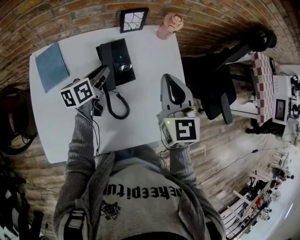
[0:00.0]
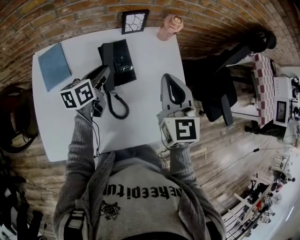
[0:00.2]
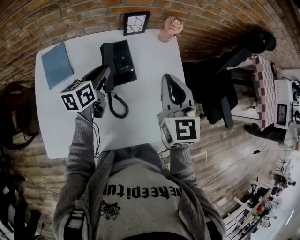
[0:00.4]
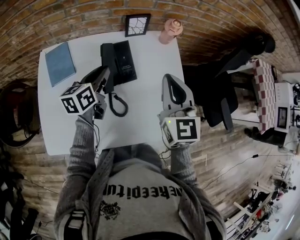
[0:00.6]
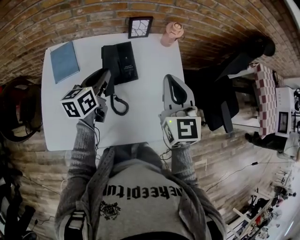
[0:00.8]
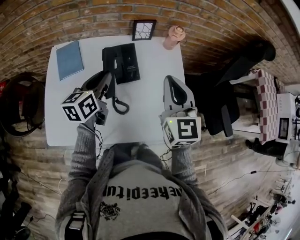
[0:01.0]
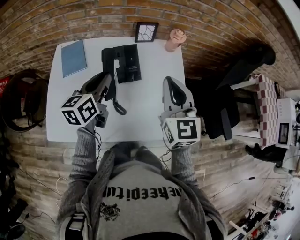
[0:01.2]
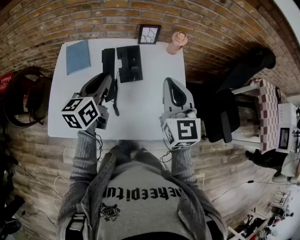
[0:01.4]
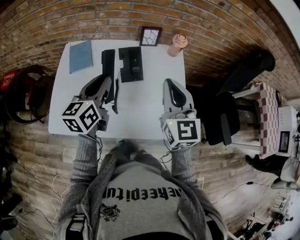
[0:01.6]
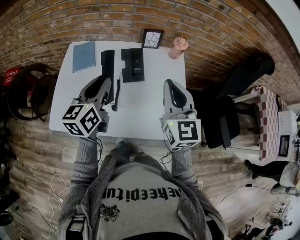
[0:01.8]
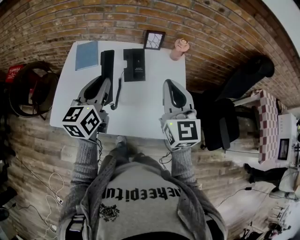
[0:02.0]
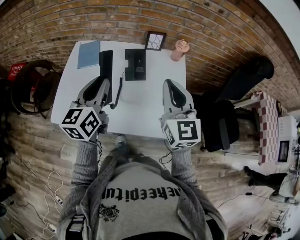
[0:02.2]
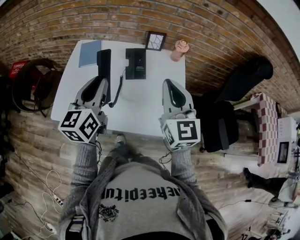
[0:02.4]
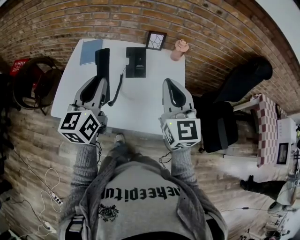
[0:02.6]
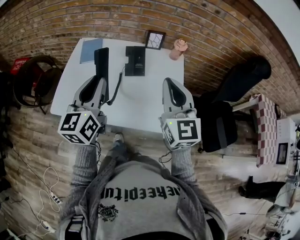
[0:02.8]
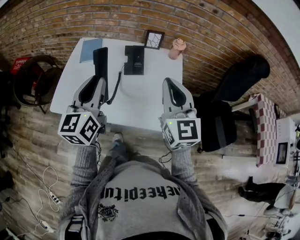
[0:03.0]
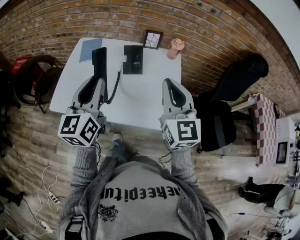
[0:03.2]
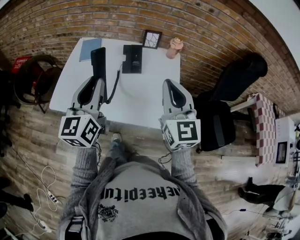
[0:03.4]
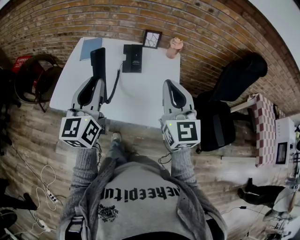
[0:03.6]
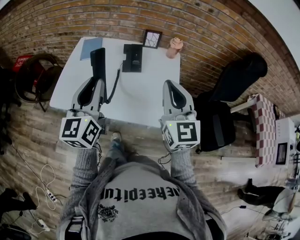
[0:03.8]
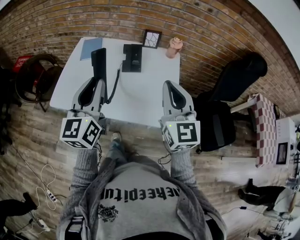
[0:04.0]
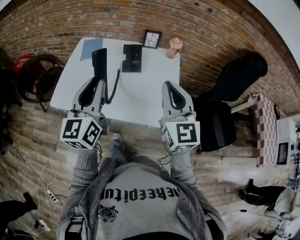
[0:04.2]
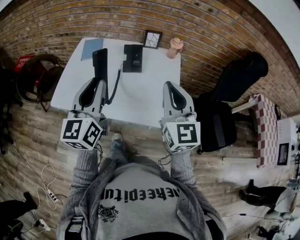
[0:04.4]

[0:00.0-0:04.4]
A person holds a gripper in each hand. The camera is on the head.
0:00.0 to 0:01.4: The right gripper moves backward and upward, roughly 10 cm, while the left gripper goes approximately 20 cm upward and backward, and changes its angle by about 30 degrees.
0:01.4 to 0:03.0: The right gripper moves backward and upward, some 15 cm; the left gripper heads backward and upward, covering approximately 20 cm, and swivels roughly 30 degrees.
0:03.0 to 0:04.4: The right gripper ends up about 5 cm from where it was. The left gripper heads backward, covering about 5 cm.

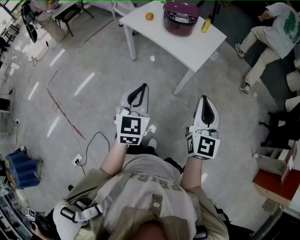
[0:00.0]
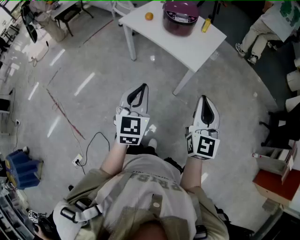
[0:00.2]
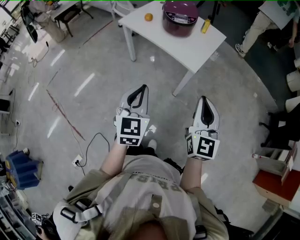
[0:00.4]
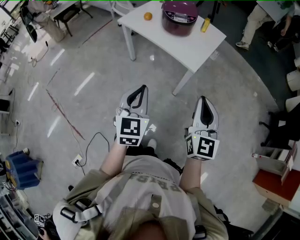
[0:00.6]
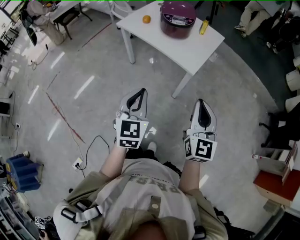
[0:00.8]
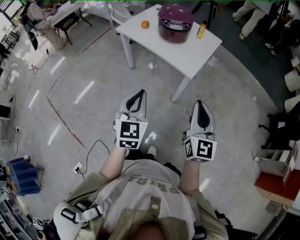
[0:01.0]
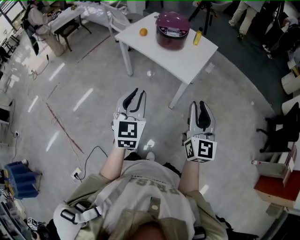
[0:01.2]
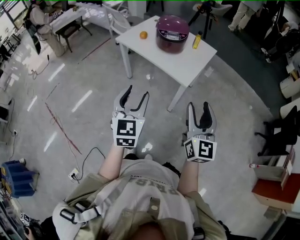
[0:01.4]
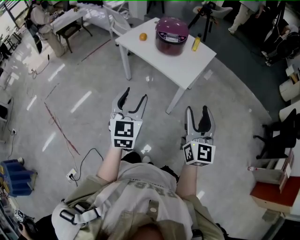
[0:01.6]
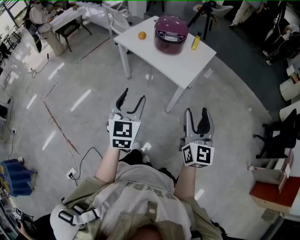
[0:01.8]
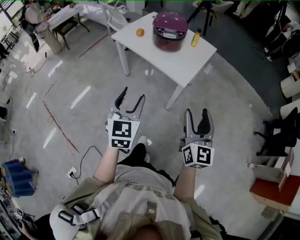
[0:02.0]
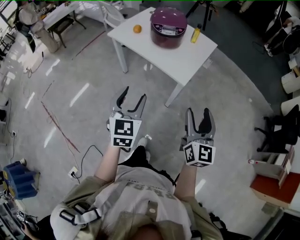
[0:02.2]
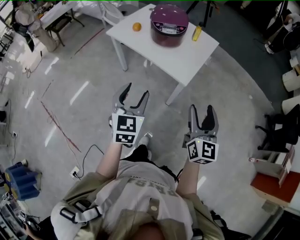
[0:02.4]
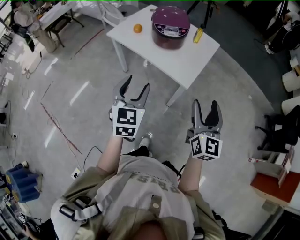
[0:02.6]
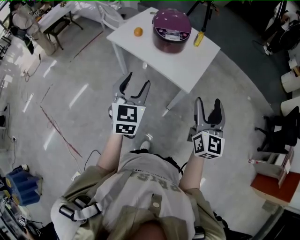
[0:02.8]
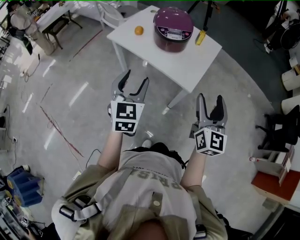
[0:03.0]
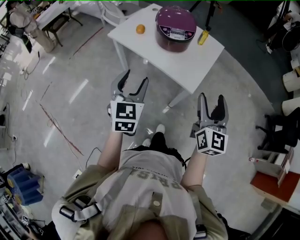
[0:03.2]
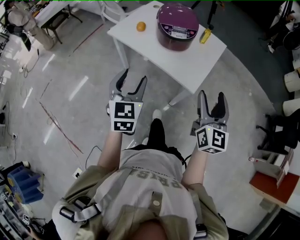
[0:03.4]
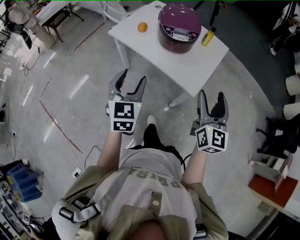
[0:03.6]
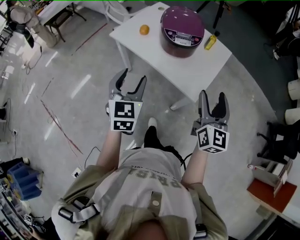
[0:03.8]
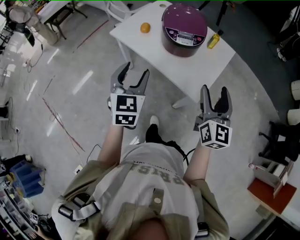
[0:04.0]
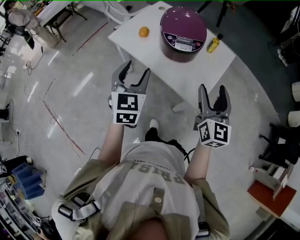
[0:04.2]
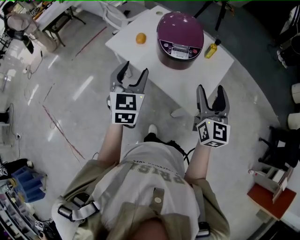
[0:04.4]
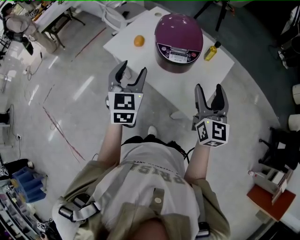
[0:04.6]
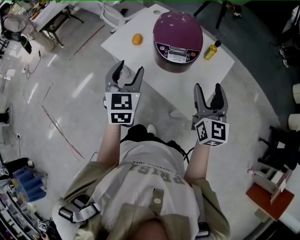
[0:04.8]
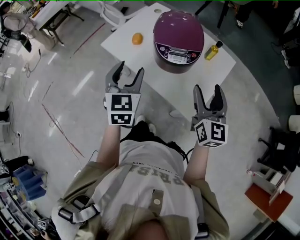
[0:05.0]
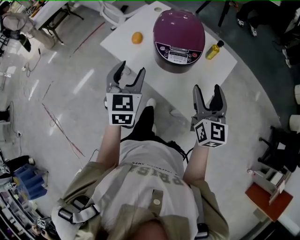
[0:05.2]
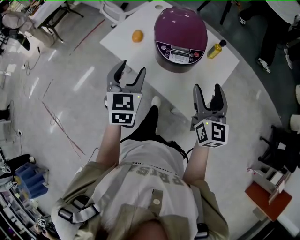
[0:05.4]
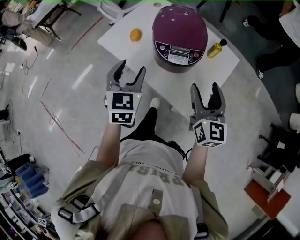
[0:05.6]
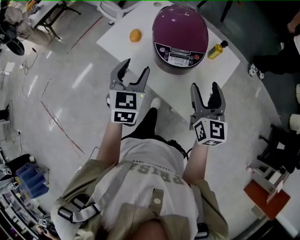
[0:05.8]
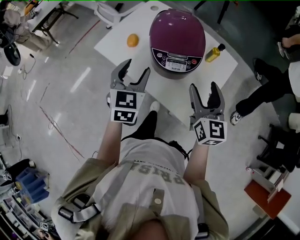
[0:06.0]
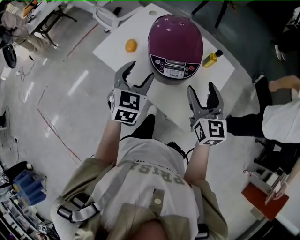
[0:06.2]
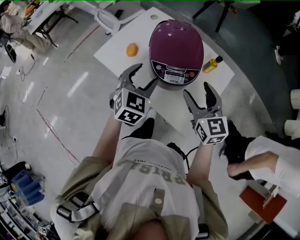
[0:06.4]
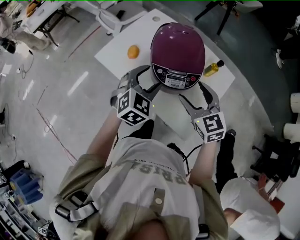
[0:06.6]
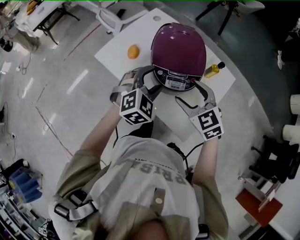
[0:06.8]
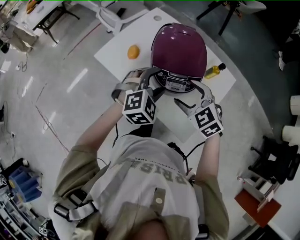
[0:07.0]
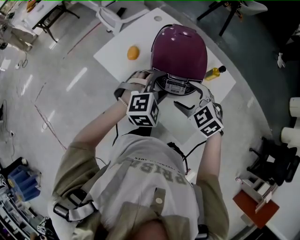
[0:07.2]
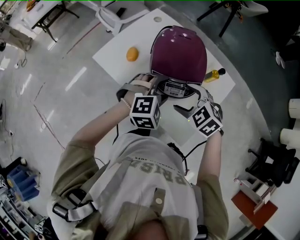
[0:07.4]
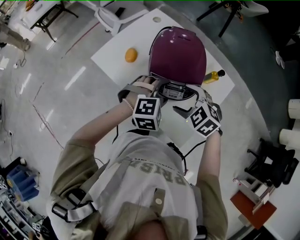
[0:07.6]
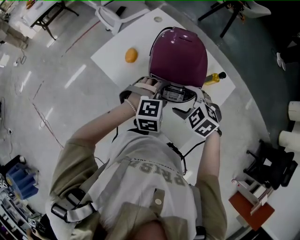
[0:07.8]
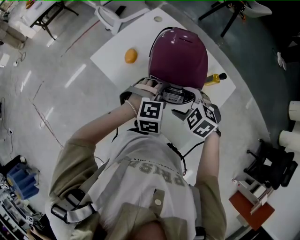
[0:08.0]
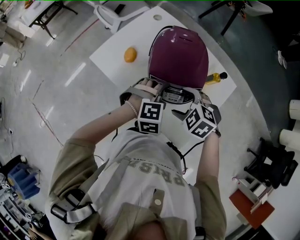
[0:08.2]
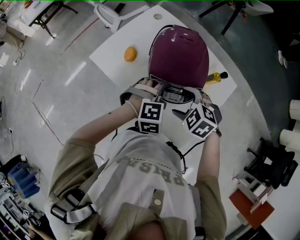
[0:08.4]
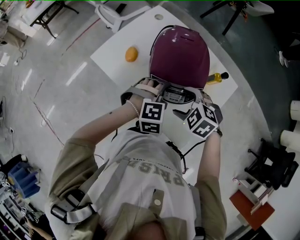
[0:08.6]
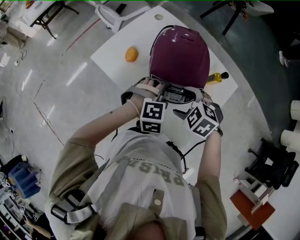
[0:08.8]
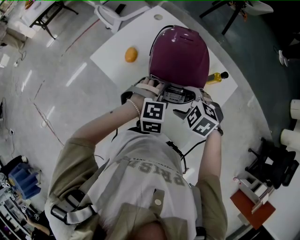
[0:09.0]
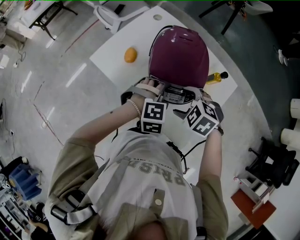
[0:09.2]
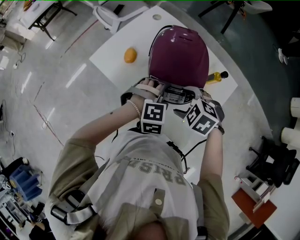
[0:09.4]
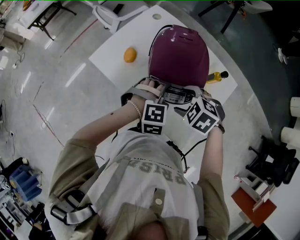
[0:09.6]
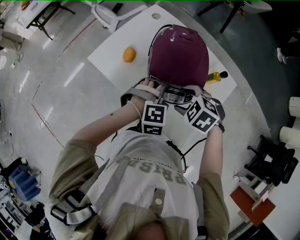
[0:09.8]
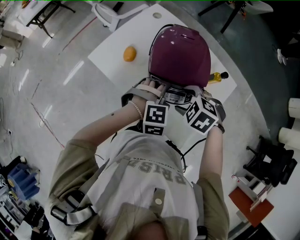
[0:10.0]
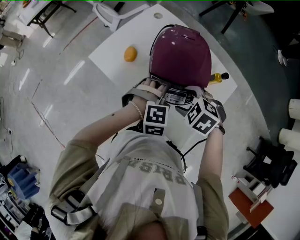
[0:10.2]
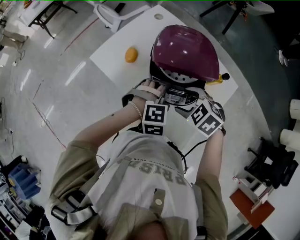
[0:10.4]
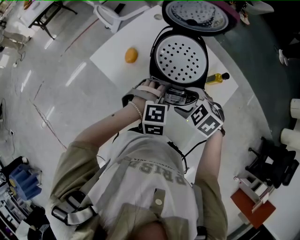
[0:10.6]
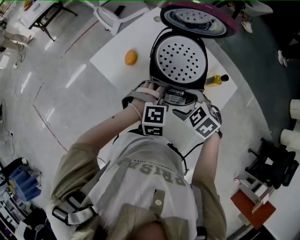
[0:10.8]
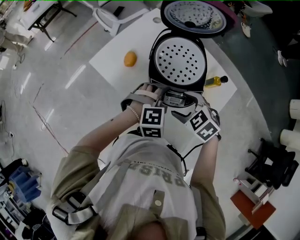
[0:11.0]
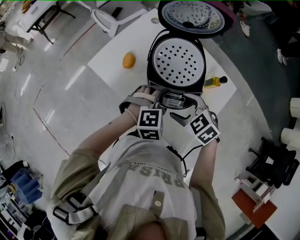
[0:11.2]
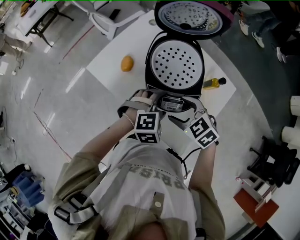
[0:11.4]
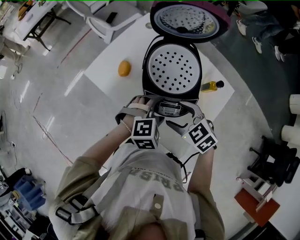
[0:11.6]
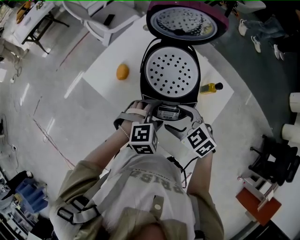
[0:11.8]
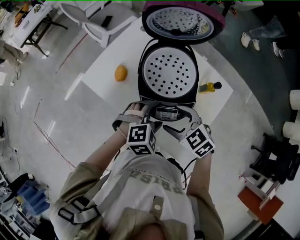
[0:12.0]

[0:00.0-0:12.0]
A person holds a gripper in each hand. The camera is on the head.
0:00.0 to 0:01.6: The left gripper opens its fingers; the right gripper opens its fingers.
0:01.6 to 0:03.0: Both grippers move forward, approximately 15 cm.
0:03.0 to 0:04.4: The grippers both shift forward by approximately 20 cm.
0:04.4 to 0:06.0: Both grippers move forward and downward, approximately 15 cm.
0:06.0 to 0:07.6: The right gripper is displaced downward, forward and to the left by roughly 15 cm, and points its fingers roughly 50 degrees further downward. The left gripper heads to the right and downward, covering roughly 15 cm, and rotates some 60 degrees.
0:07.6 to 0:10.4: The grippers move only a little.
0:10.4 to 0:12.0: The right gripper rotates some 20 degrees.

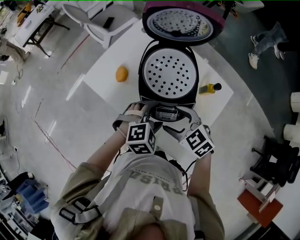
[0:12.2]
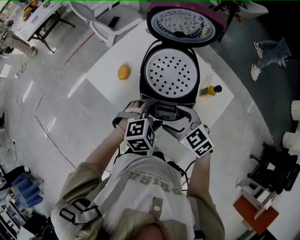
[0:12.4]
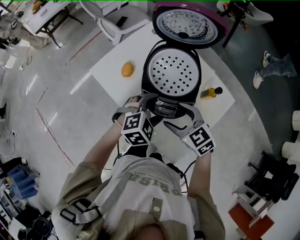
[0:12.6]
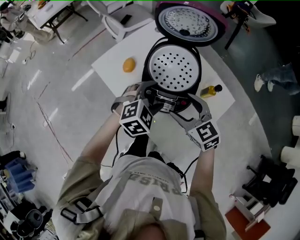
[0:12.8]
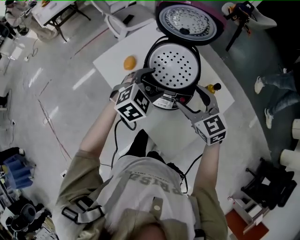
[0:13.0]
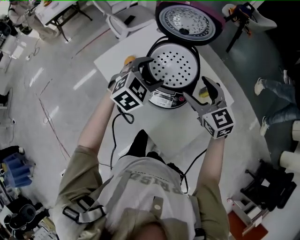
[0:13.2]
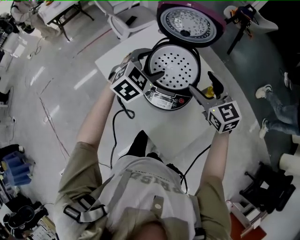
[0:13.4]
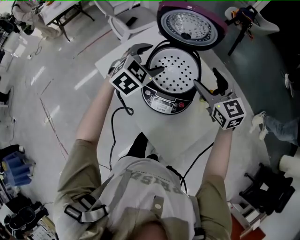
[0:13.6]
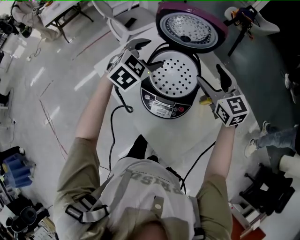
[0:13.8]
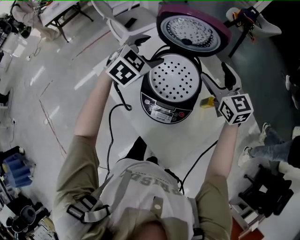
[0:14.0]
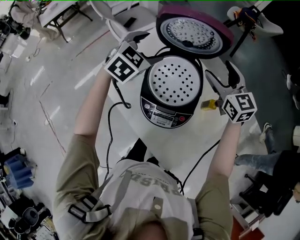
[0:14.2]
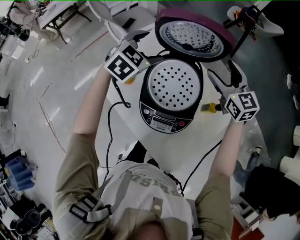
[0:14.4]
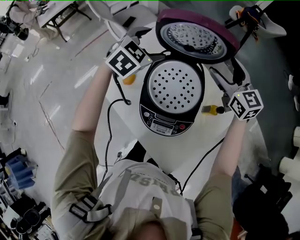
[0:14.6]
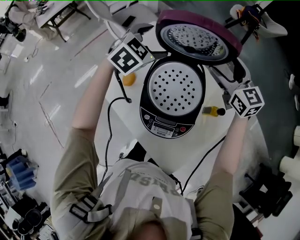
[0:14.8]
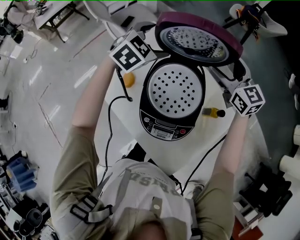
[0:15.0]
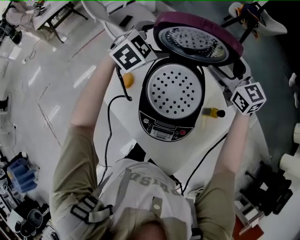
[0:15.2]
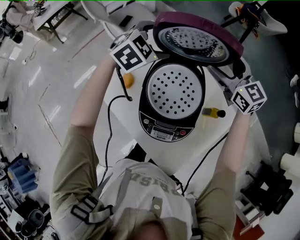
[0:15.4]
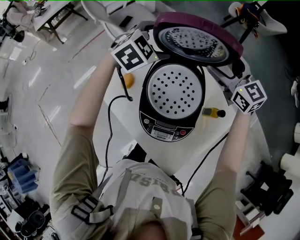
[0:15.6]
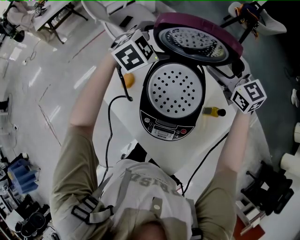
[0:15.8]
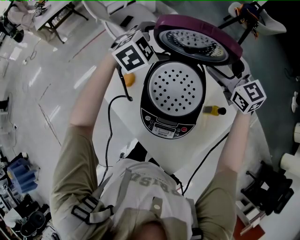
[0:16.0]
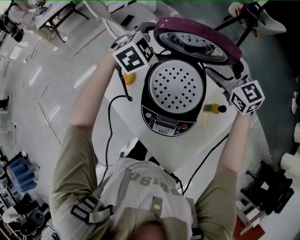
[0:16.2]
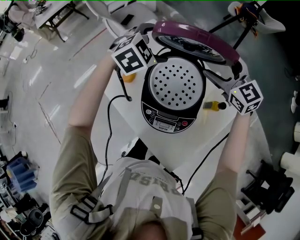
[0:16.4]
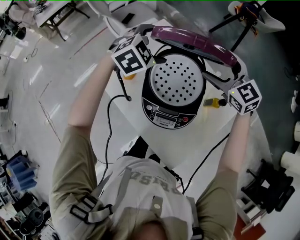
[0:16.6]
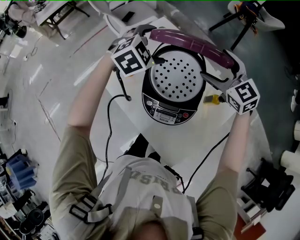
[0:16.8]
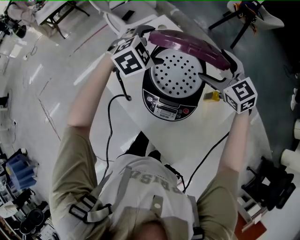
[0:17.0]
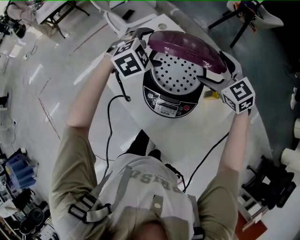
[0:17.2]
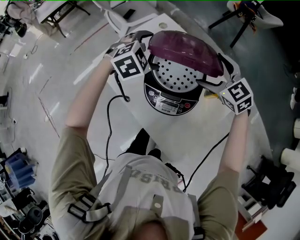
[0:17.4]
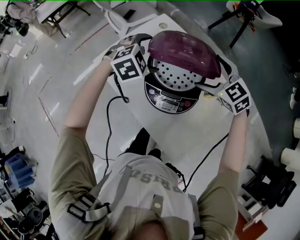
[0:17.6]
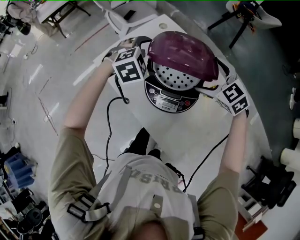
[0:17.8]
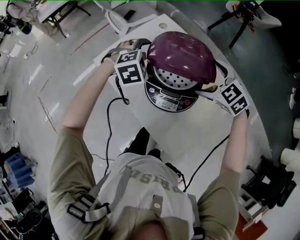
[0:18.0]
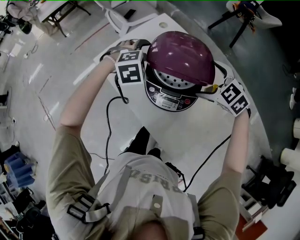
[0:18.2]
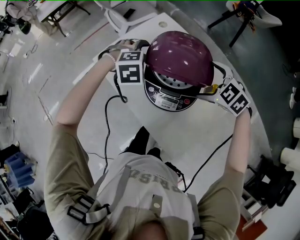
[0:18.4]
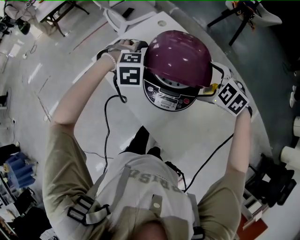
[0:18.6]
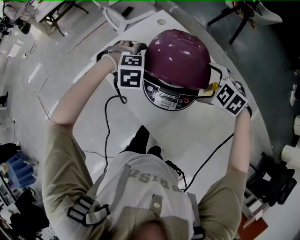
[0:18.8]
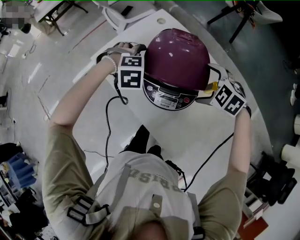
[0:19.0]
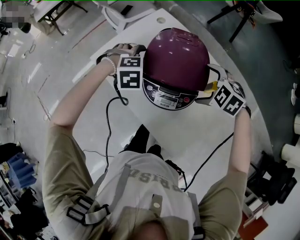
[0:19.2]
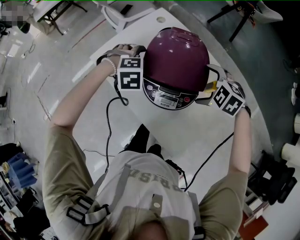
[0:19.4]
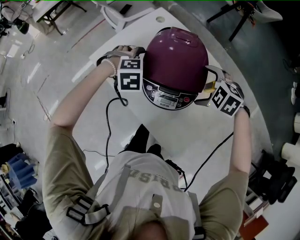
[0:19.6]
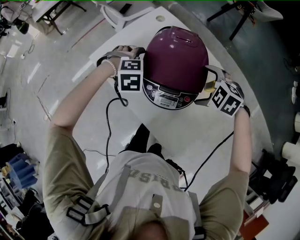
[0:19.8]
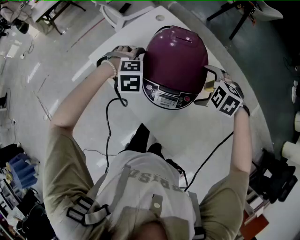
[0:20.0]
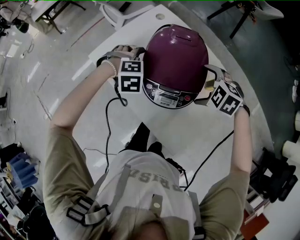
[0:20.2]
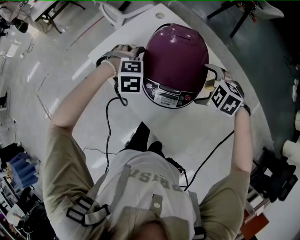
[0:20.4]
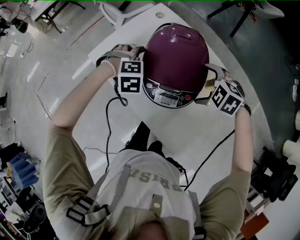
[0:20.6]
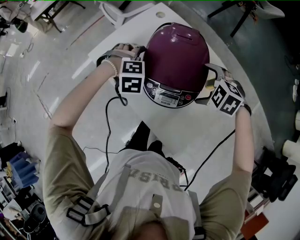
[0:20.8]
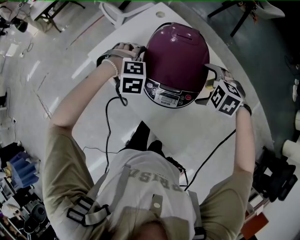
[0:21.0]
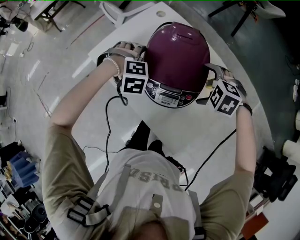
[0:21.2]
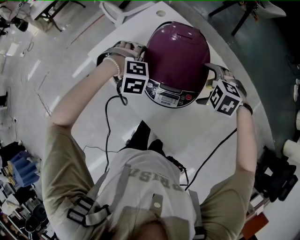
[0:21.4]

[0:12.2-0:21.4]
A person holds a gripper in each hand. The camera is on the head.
0:12.2 to 0:13.8: The right gripper heads forward, upward and to the right, covering approximately 25 cm, and turns by some 30 degrees, while the left gripper travels forward and upward by some 25 cm, and rotates roughly 30 degrees.
0:13.8 to 0:15.2: The two grippers go roughly 15 cm forward.
0:15.2 to 0:16.8: The two grippers go some 10 cm backward.
0:16.8 to 0:18.4: Both grippers travel together backward and downward, about 15 cm. The left gripper swivels roughly 30 degrees. Meanwhile the right gripper changes its angle by about 30 degrees.
0:18.4 to 0:19.8: The left gripper ends up about 5 cm from where it was. Meanwhile the right gripper heads downward, covering approximately 5 cm.
0:19.8 to 0:21.4: There are only small adjustments of the grippers.
